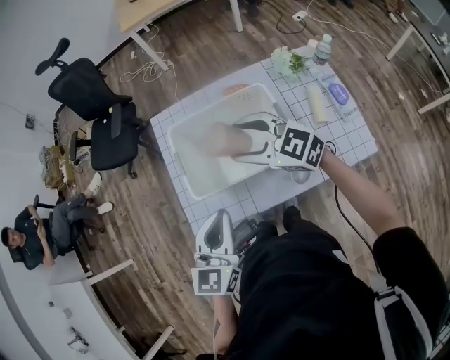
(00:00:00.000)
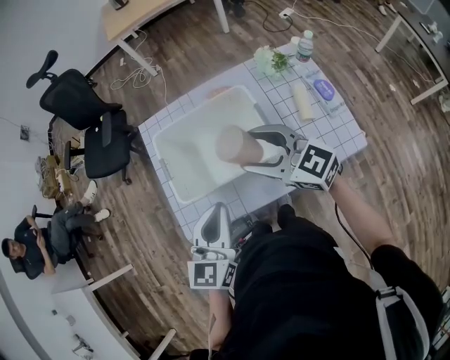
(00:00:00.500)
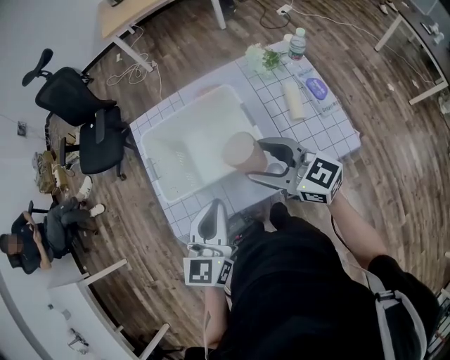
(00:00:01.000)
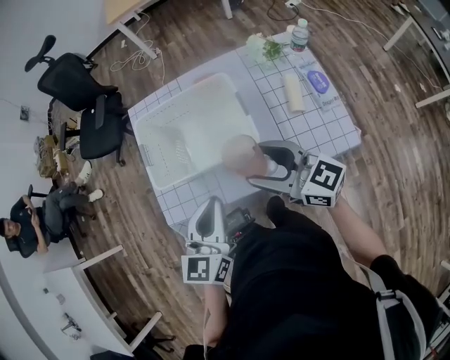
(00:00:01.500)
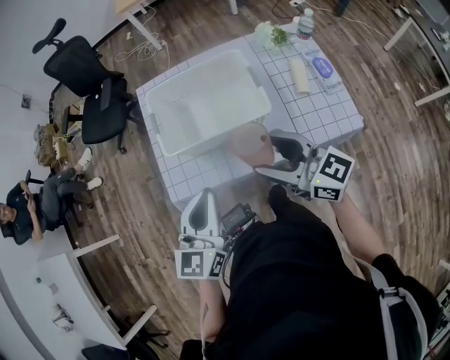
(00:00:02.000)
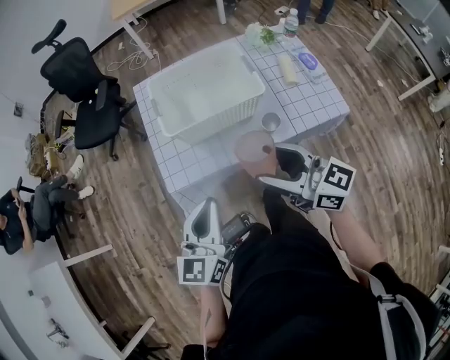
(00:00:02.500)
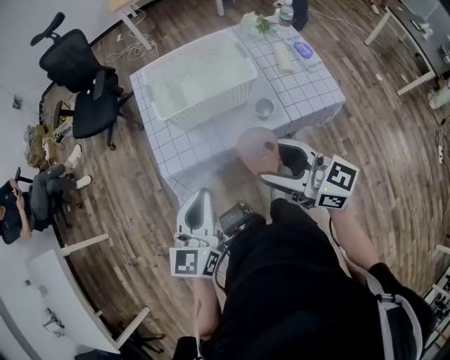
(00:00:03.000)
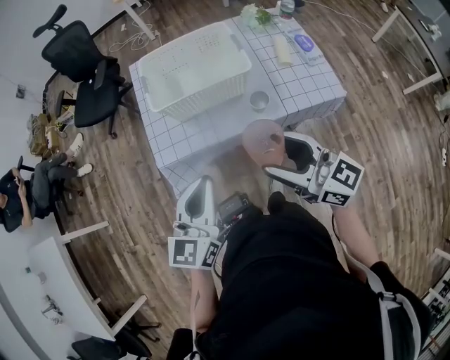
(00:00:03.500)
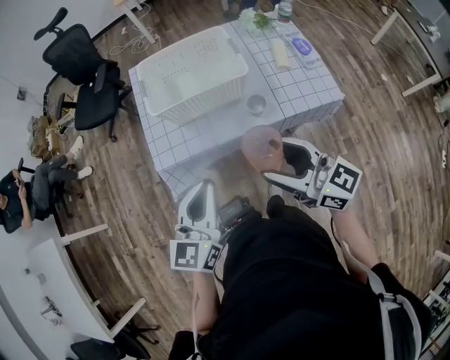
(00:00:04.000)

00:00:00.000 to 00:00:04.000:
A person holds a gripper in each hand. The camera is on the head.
00:00:00.000 to 00:00:02.000: The left gripper goes about 10 cm backward, and moves approximately 10 cm to the right and comes back. The right gripper travels backward by about 20 cm, and changes its angle by roughly 30 degrees.
00:00:02.000 to 00:00:04.000: The two grippers go roughly 15 cm backward.

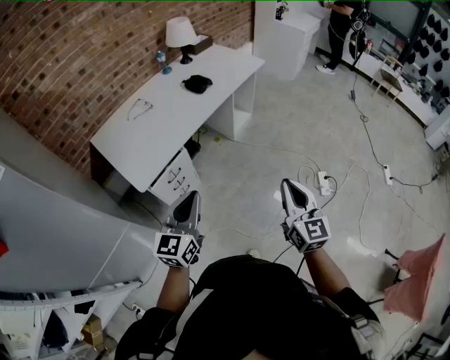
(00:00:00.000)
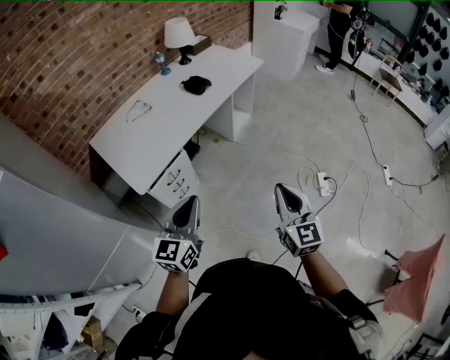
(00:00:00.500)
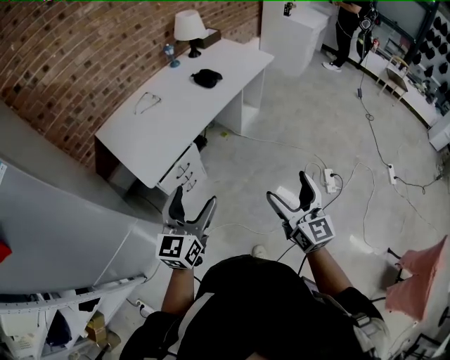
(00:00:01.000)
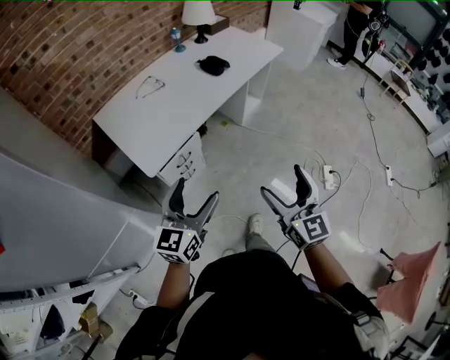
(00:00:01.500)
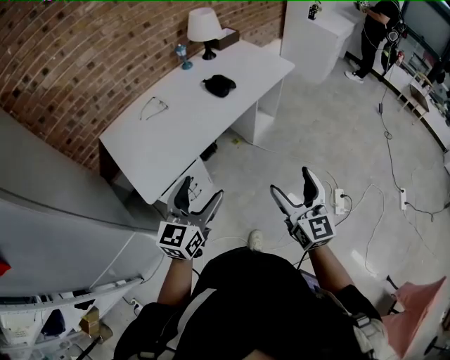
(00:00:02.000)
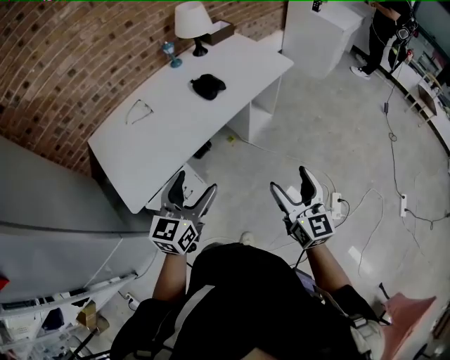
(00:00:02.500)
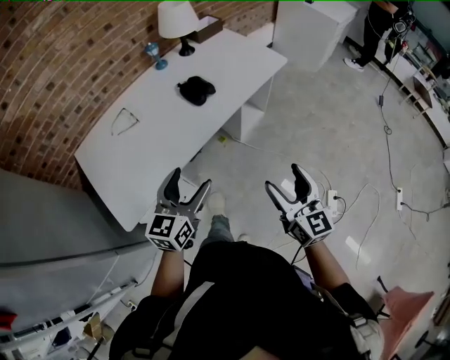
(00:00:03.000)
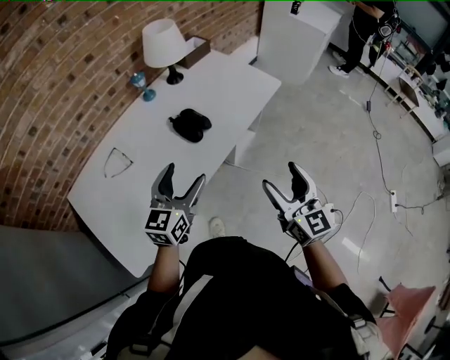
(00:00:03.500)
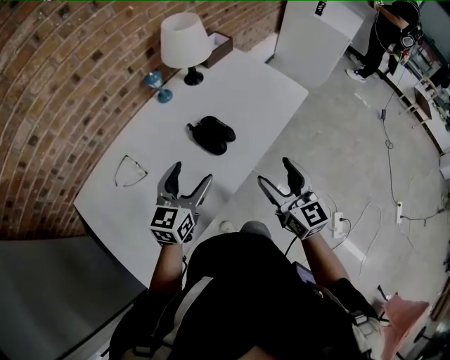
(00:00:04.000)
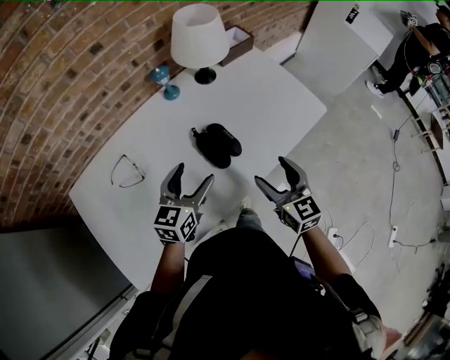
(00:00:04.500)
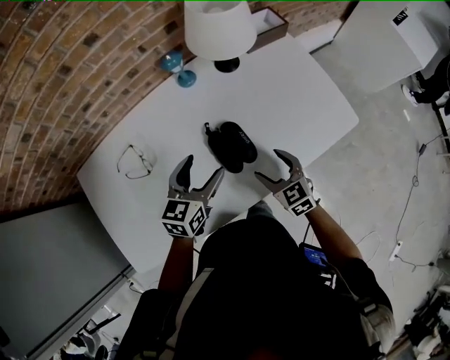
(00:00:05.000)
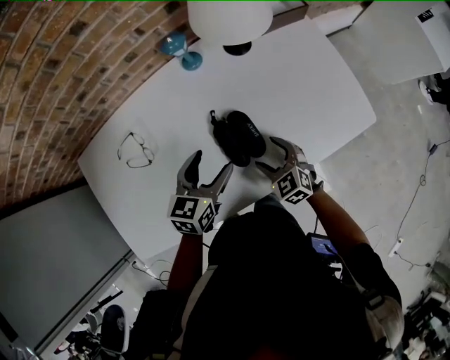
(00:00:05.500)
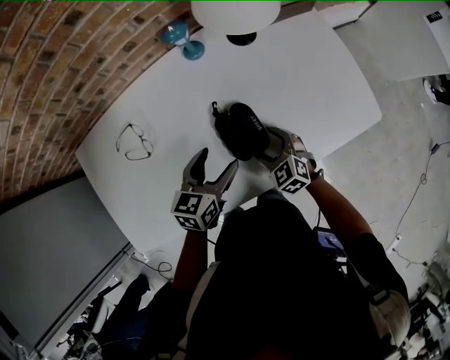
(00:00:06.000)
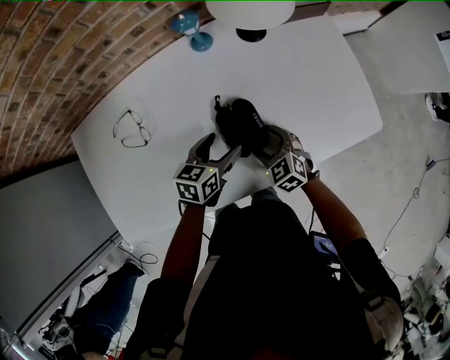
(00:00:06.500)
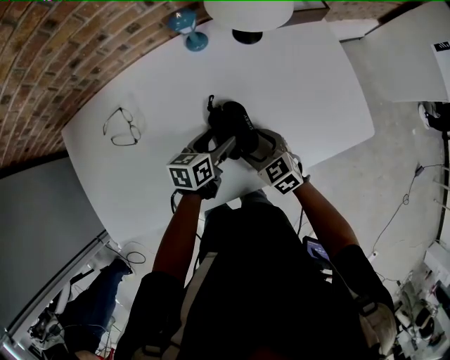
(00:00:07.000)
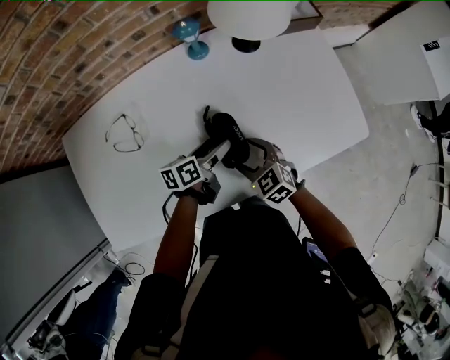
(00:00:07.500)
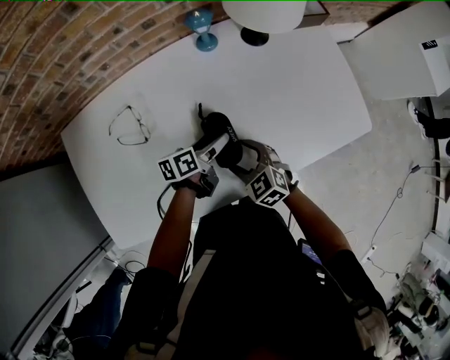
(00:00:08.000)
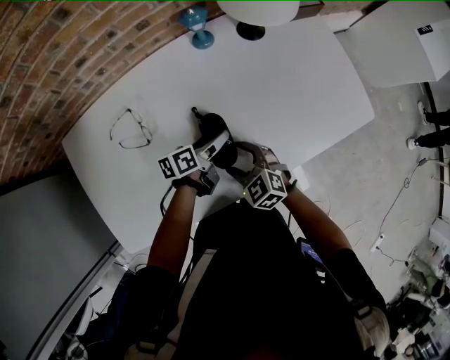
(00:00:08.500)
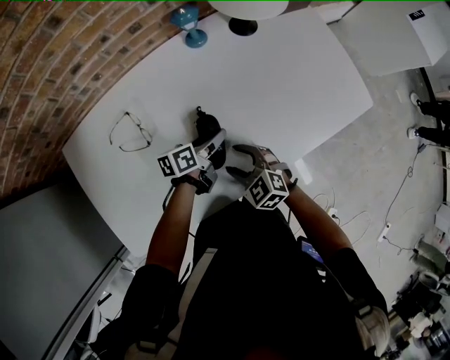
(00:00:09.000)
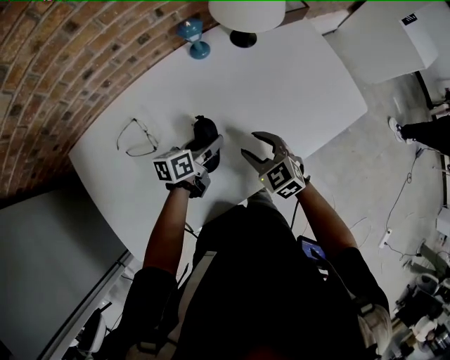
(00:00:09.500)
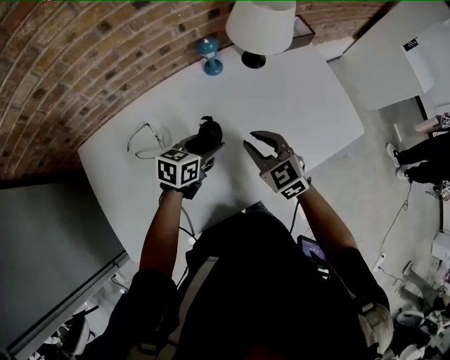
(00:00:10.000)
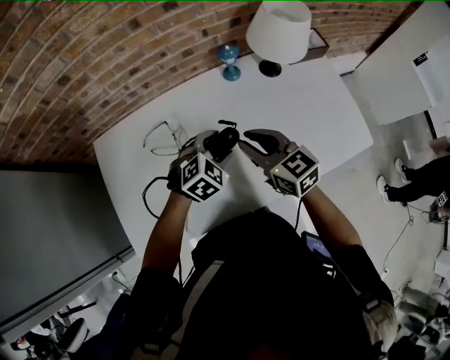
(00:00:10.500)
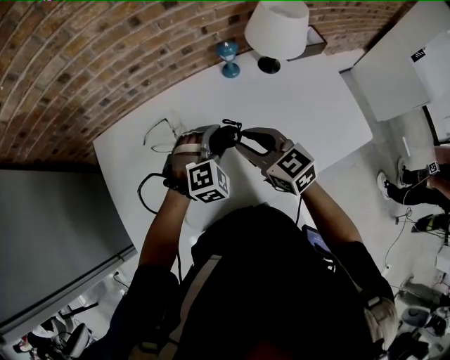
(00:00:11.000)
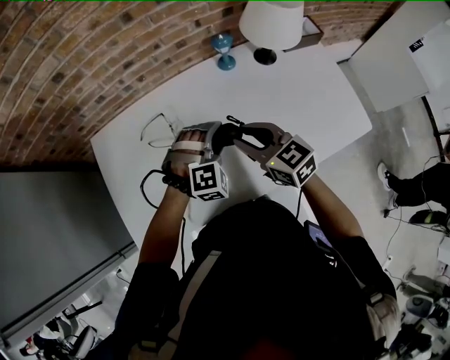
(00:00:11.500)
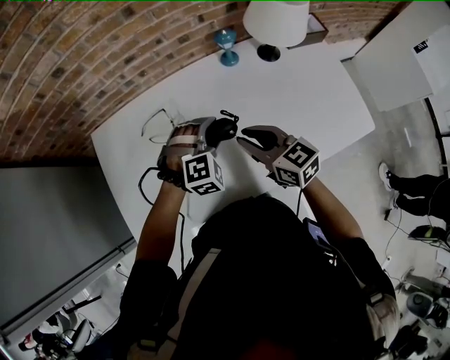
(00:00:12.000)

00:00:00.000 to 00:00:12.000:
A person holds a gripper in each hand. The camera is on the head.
00:00:00.000 to 00:00:02.000: Both grippers travel together forward, roughly 15 cm. The right gripper opens. Meanwhile the left gripper opens.
00:00:02.000 to 00:00:04.000: Both grippers are carried forward, roughly 50 cm.
00:00:04.000 to 00:00:06.000: The right gripper moves downward, some 30 cm, and angles its fingers downward, by approximately 40 degrees. The left gripper is displaced downward by approximately 15 cm, and swivels about 30 degrees.
00:00:06.000 to 00:00:08.000: The right gripper heads to the left, covering approximately 10 cm; the left gripper goes approximately 10 cm downward, and rotates around the line of its fingers by about 40 degrees, counterclockwise from behind.
00:00:08.000 to 00:00:10.000: The right gripper goes roughly 15 cm upward and forward, and closes its fingers; the left gripper shifts about 10 cm upward, and rotates around the line of its fingers by roughly 40 degrees, clockwise from behind.
00:00:10.000 to 00:00:12.000: The left gripper shifts by approximately 5 cm, and twists about 70 degrees clockwise, seen from behind, while the right gripper changes place by about 10 cm, and changes its angle by some 30 degrees.

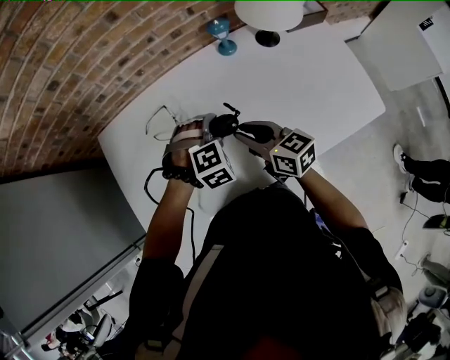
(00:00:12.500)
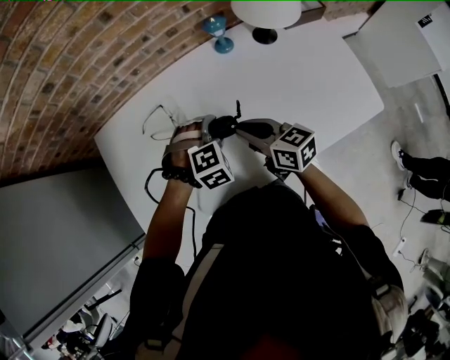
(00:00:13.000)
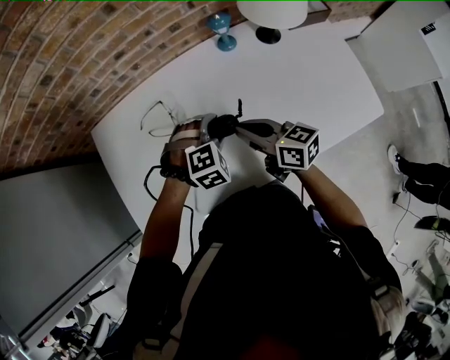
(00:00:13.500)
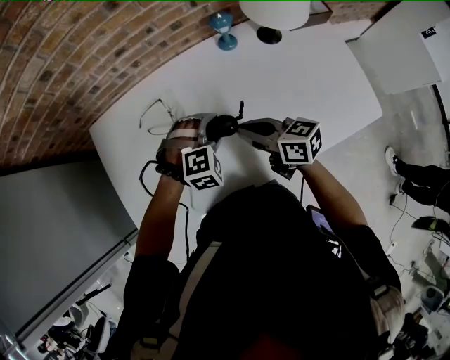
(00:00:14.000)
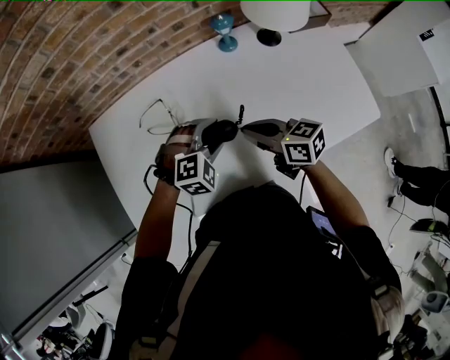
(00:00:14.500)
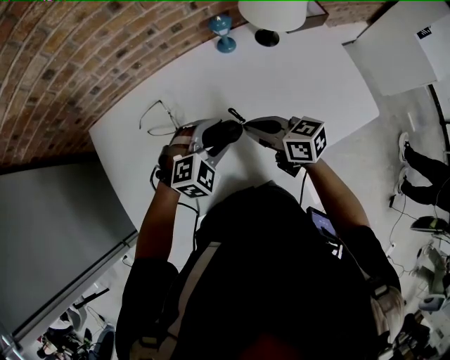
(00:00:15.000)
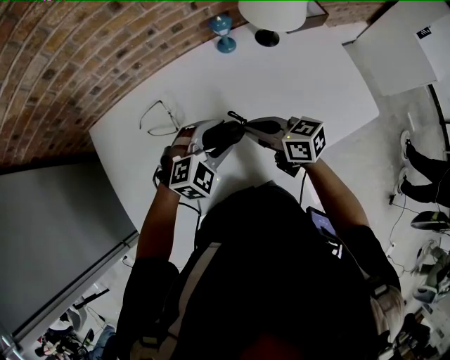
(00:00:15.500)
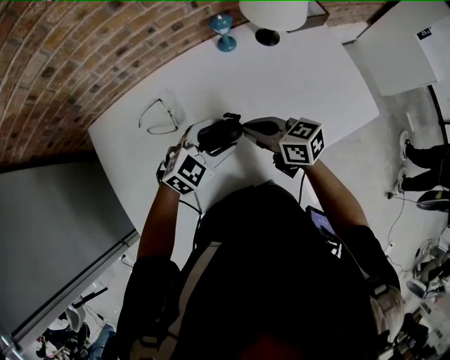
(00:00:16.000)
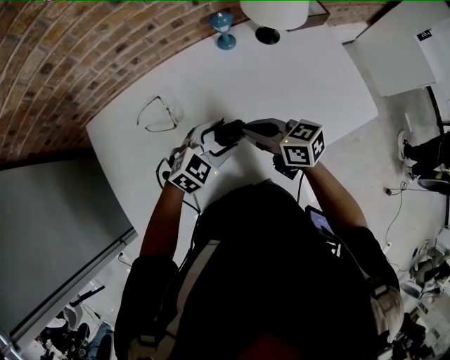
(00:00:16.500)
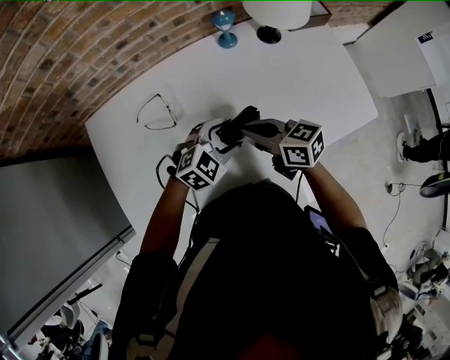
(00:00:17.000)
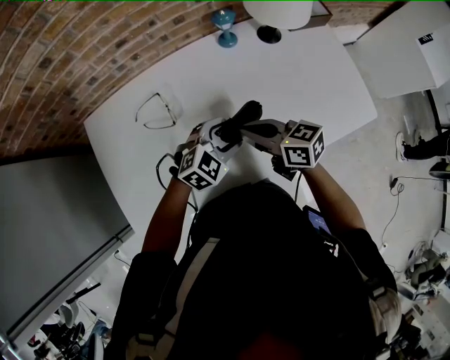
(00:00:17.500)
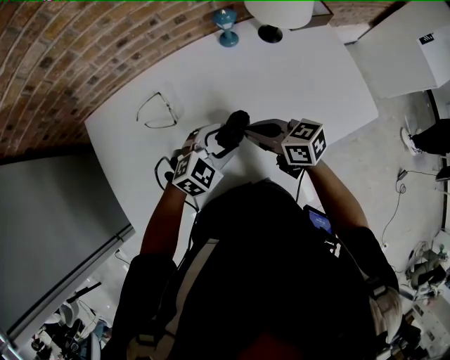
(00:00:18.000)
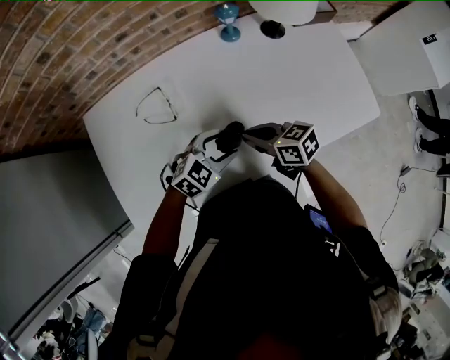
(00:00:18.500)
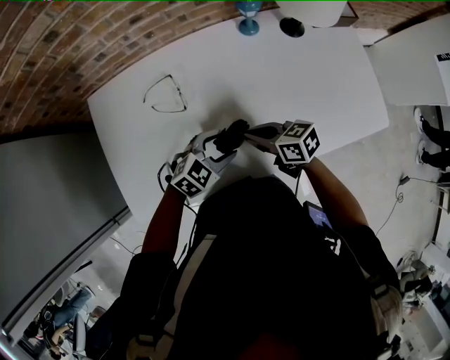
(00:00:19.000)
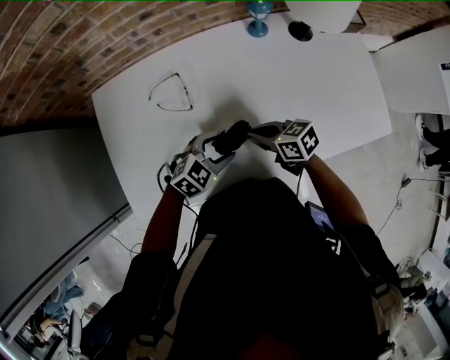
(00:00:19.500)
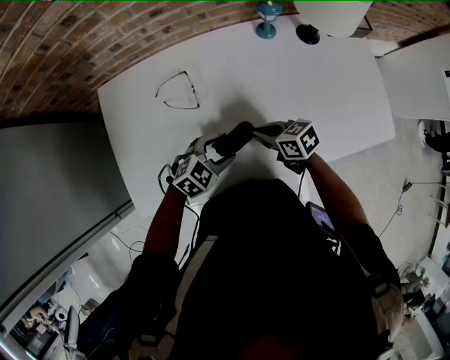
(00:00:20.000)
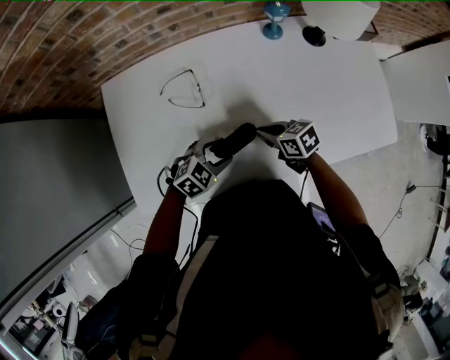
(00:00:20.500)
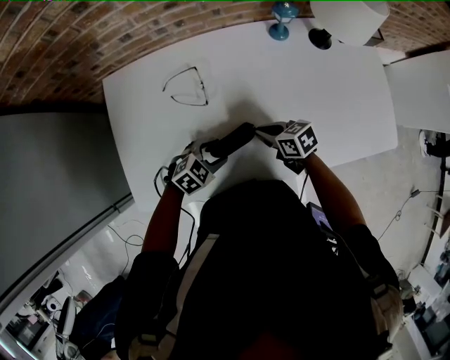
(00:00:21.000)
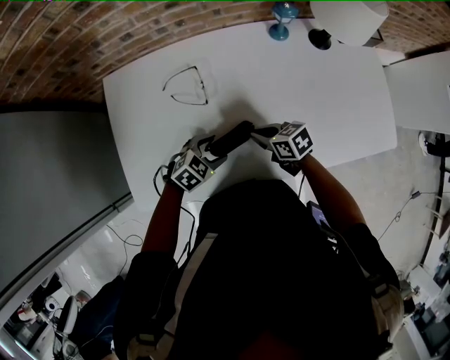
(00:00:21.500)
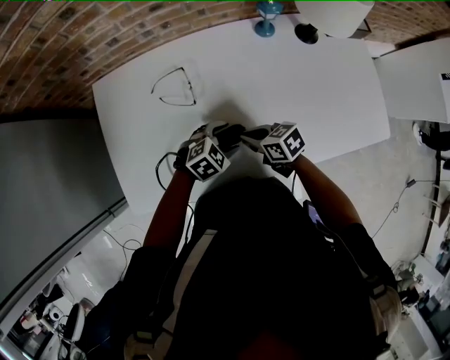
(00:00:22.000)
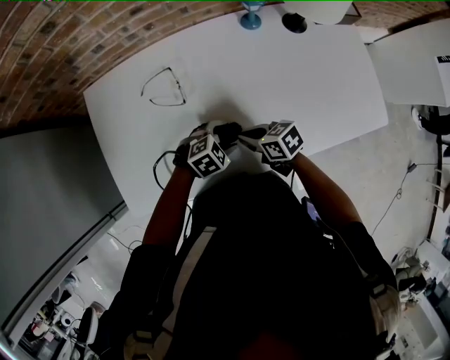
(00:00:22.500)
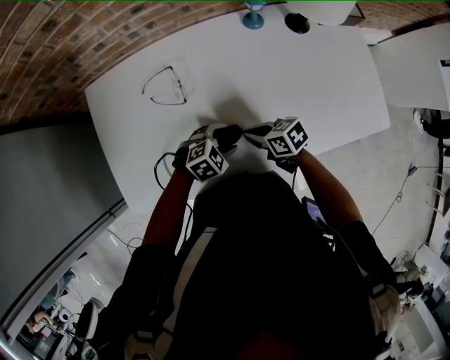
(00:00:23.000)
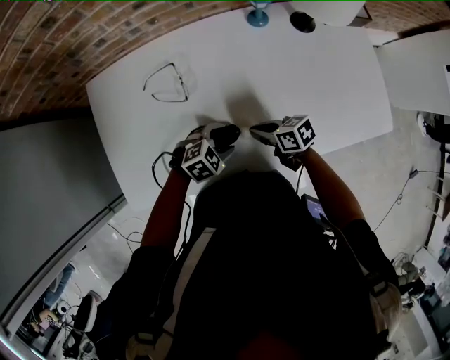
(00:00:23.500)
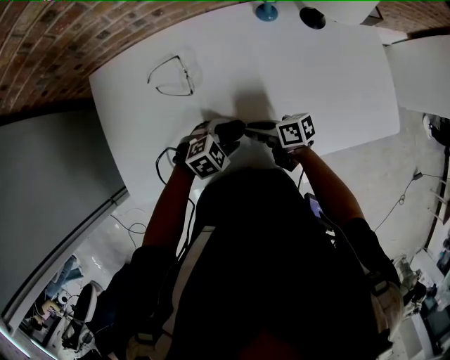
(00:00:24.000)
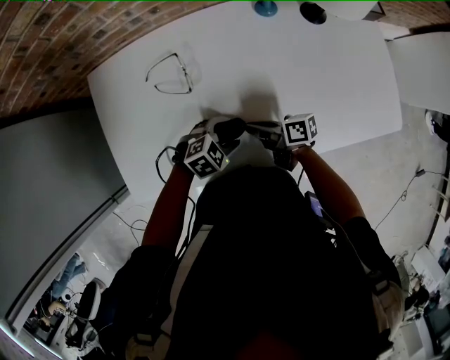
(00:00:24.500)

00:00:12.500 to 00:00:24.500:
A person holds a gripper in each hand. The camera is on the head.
00:00:12.500 to 00:00:14.500: The grippers make only small movements.
00:00:14.500 to 00:00:16.500: The left gripper changes its angle by approximately 30 degrees.
00:00:16.500 to 00:00:18.500: The right gripper travels downward by about 5 cm.
00:00:18.500 to 00:00:20.500: The left gripper changes place by roughly 10 cm; the right gripper travels downward by some 10 cm.
00:00:20.500 to 00:00:22.500: The left gripper changes place by roughly 10 cm.
00:00:22.500 to 00:00:24.500: The right gripper swivels about 40 degrees.
